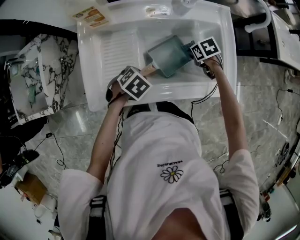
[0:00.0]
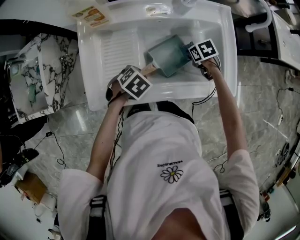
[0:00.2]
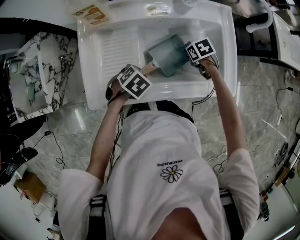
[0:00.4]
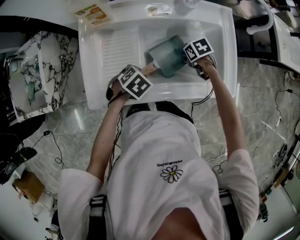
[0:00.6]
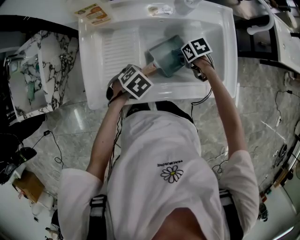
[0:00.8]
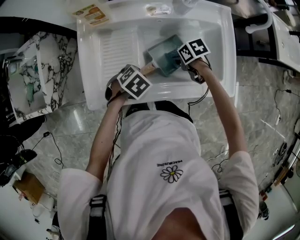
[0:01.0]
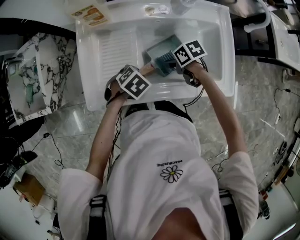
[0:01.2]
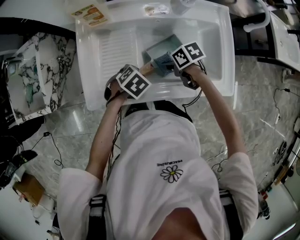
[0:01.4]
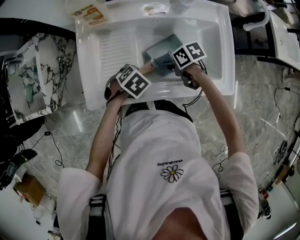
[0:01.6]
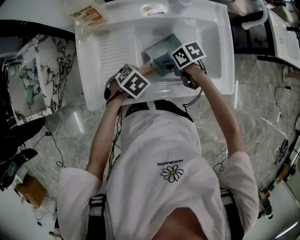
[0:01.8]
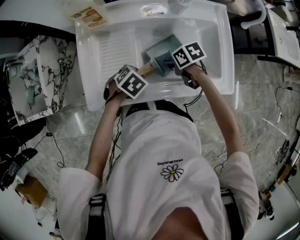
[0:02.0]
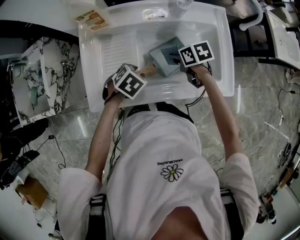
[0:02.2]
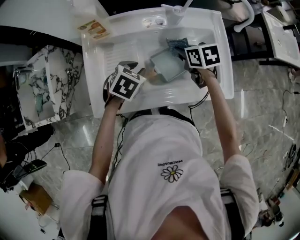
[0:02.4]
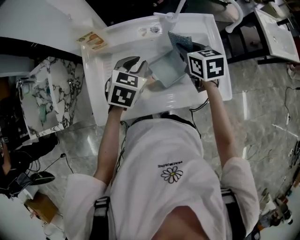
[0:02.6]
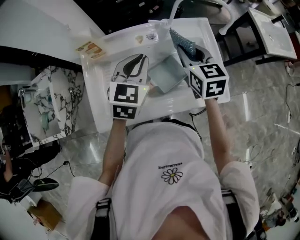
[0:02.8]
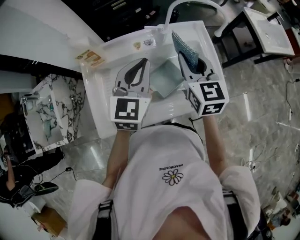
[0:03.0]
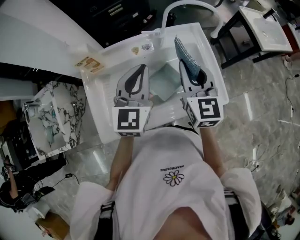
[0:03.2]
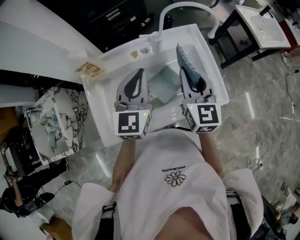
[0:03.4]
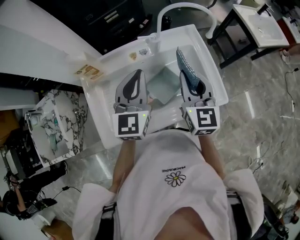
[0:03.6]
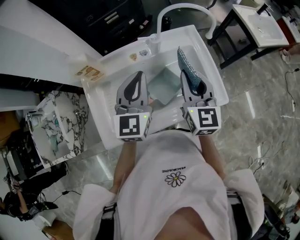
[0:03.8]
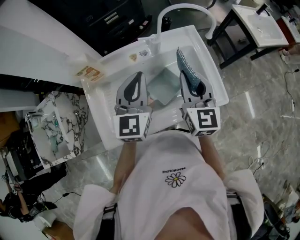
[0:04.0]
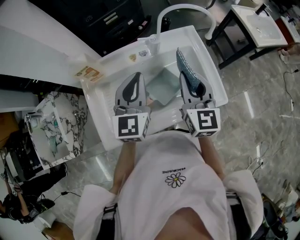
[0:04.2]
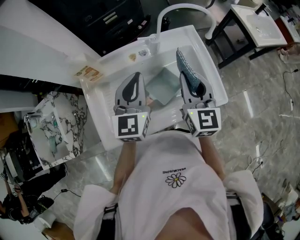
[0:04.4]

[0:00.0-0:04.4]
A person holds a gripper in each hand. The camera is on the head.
0:00.0 to 0:01.4: The right gripper ends up some 15 cm from where it was, and changes its angle by about 30 degrees.
0:01.4 to 0:03.0: The two grippers go some 30 cm upward. The right gripper tilts its fingers about 40 degrees upward, while the left gripper tilts its fingers roughly 60 degrees upward, and closes its fingers.
0:03.0 to 0:04.4: The right gripper changes place by roughly 5 cm.

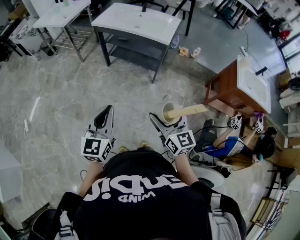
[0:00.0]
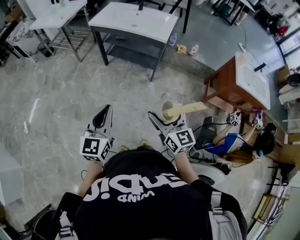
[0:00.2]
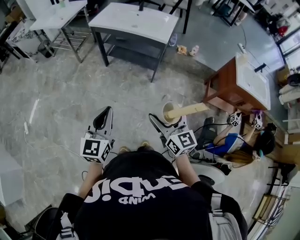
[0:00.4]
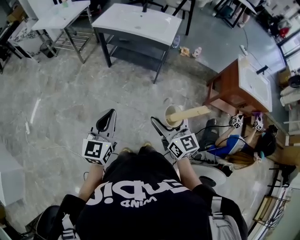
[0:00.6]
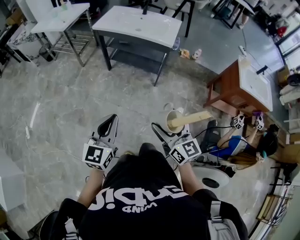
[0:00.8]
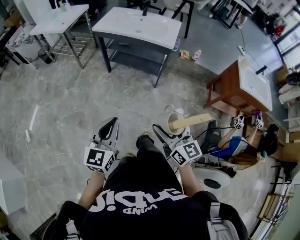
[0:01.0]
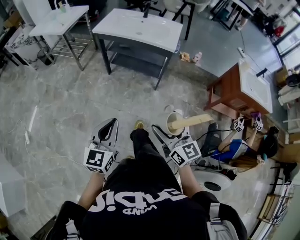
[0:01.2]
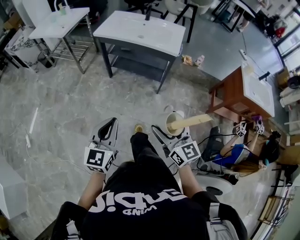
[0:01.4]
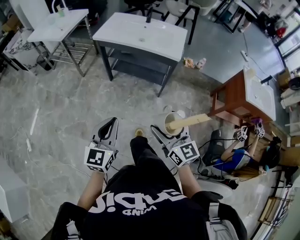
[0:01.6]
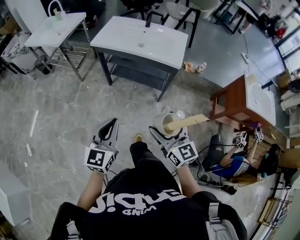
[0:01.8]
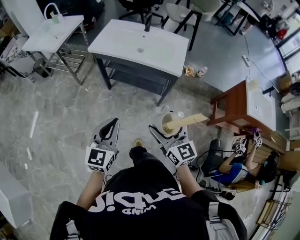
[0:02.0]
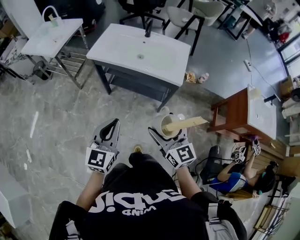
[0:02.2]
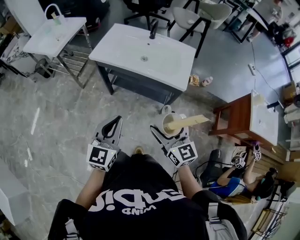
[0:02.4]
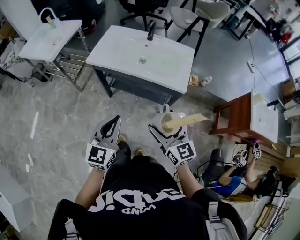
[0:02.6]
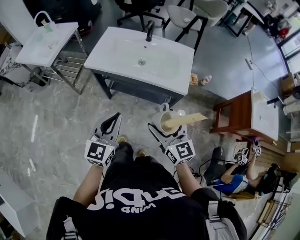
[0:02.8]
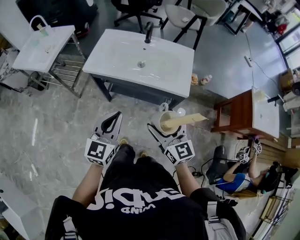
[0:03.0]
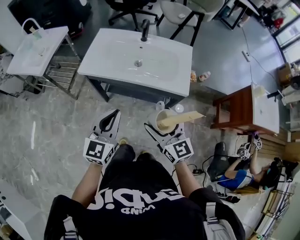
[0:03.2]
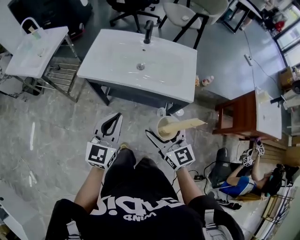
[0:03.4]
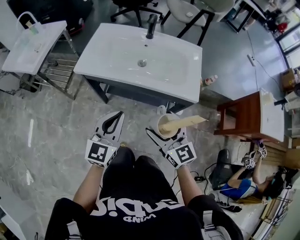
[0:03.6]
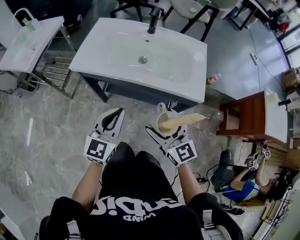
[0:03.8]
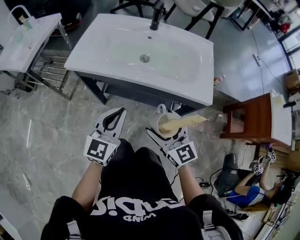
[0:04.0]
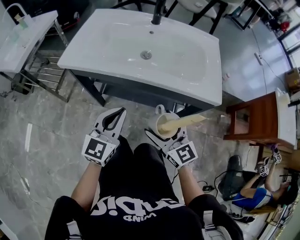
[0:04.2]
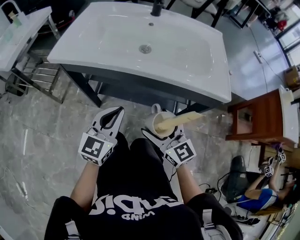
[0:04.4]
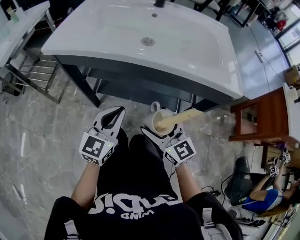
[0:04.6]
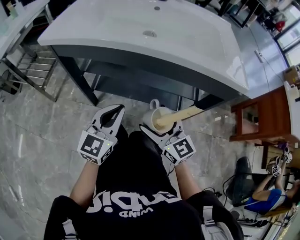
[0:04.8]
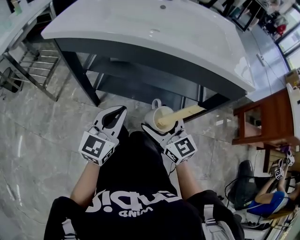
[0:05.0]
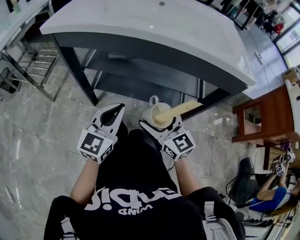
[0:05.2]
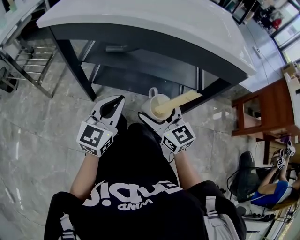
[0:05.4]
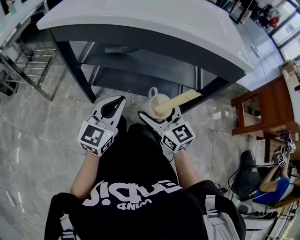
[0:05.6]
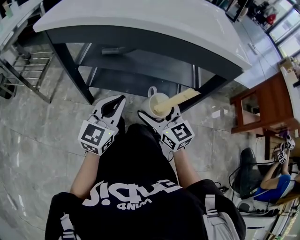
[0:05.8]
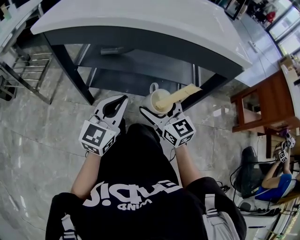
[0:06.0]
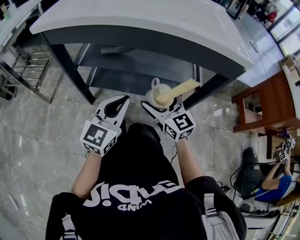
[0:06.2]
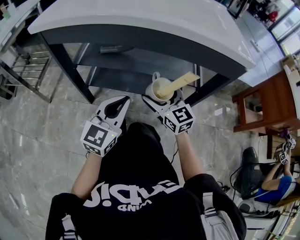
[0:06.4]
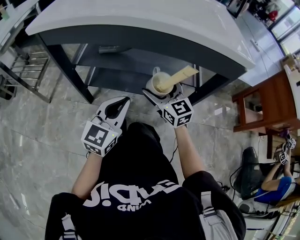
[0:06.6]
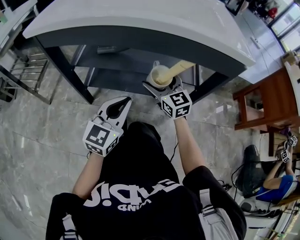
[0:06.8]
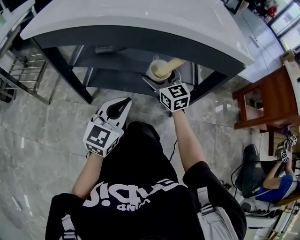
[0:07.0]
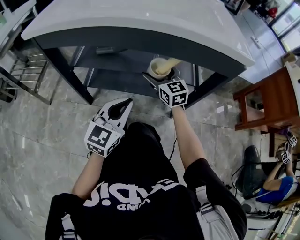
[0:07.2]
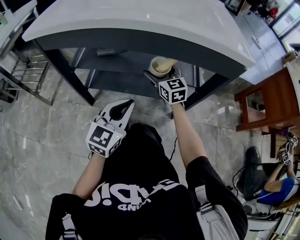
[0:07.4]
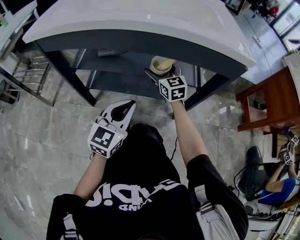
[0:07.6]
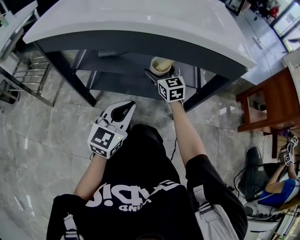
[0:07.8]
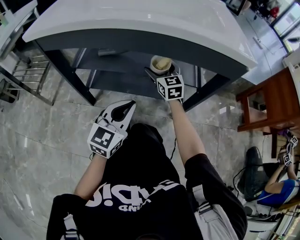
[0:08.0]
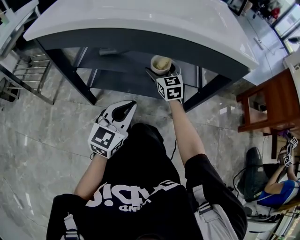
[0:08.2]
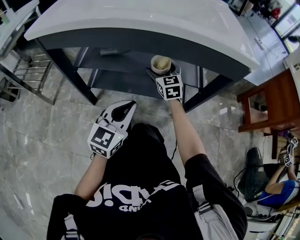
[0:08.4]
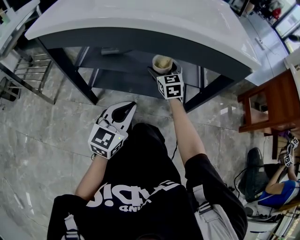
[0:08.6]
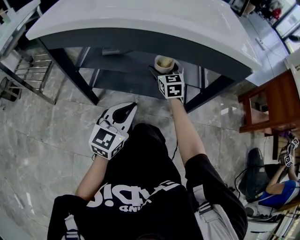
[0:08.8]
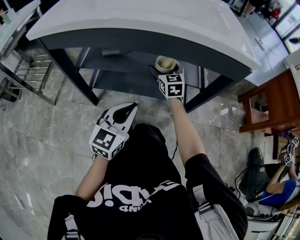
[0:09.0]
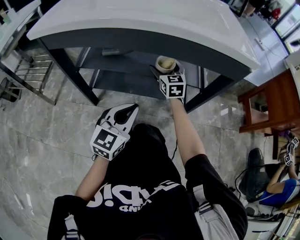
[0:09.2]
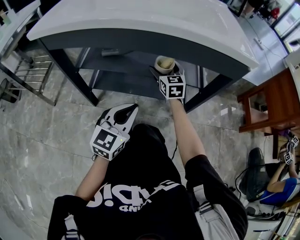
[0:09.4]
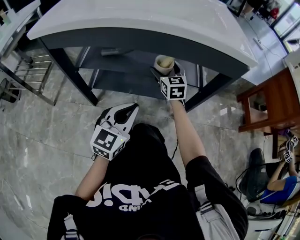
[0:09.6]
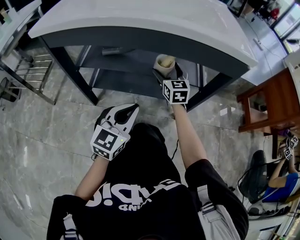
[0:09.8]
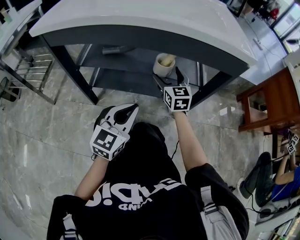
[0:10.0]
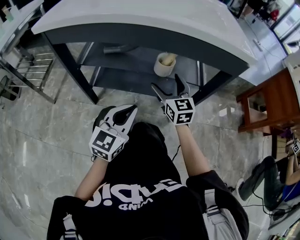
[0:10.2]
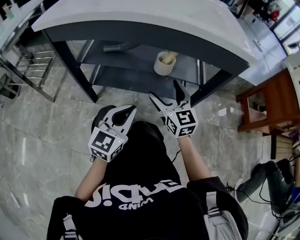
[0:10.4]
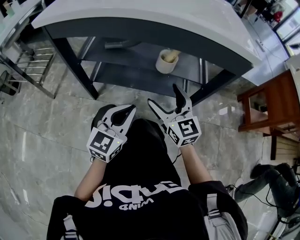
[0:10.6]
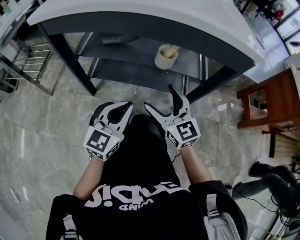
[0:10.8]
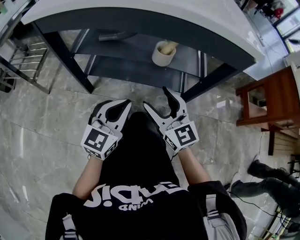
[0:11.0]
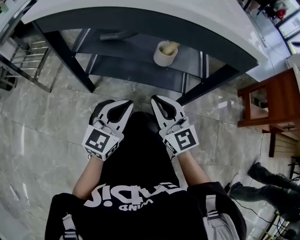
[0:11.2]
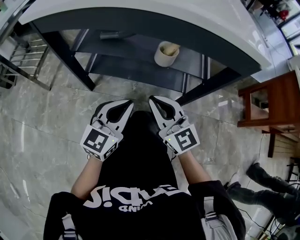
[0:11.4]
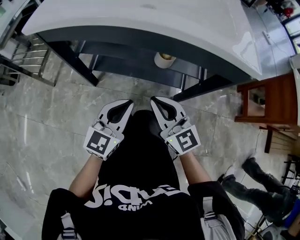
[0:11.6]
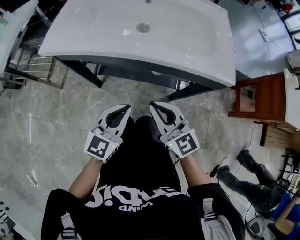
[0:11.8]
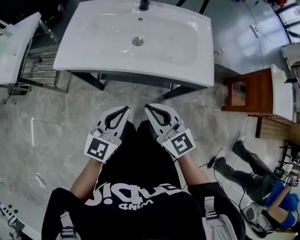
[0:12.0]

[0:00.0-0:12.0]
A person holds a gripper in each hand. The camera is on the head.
0:00.0 to 0:01.6: Both grippers travel together forward and to the left, approximately 15 cm.
0:01.6 to 0:03.0: The grippers both shift forward by some 35 cm.
0:03.0 to 0:04.4: Both grippers travel together downward and forward, about 35 cm.
0:04.4 to 0:06.0: The grippers both shift downward by about 15 cm.
0:06.0 to 0:07.6: The right gripper moves forward, about 20 cm; the left gripper changes place by about 5 cm.
0:07.6 to 0:09.0: The grippers stay close to where they were, moving slightly.
0:09.0 to 0:10.4: The right gripper travels backward by roughly 20 cm.
0:10.4 to 0:12.0: Both grippers travel together upward, some 30 cm. The right gripper closes its fingers.

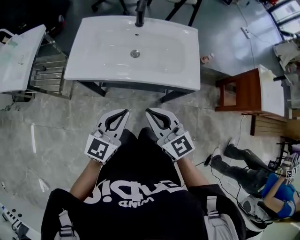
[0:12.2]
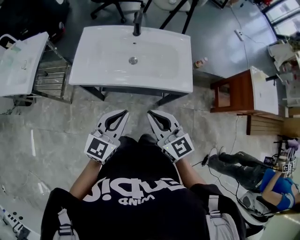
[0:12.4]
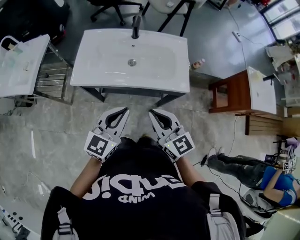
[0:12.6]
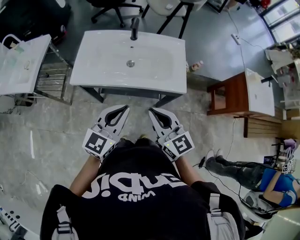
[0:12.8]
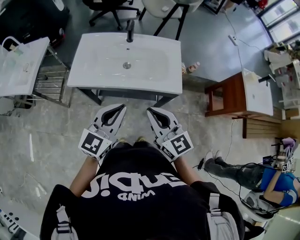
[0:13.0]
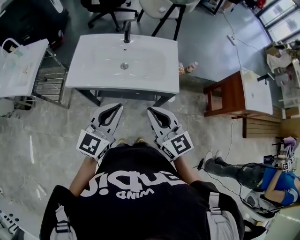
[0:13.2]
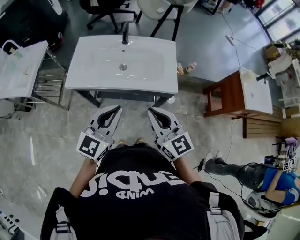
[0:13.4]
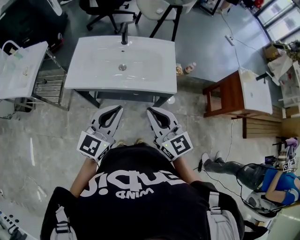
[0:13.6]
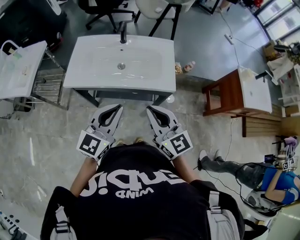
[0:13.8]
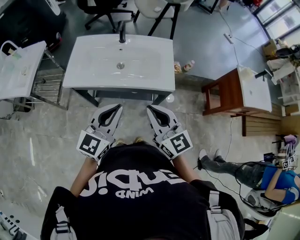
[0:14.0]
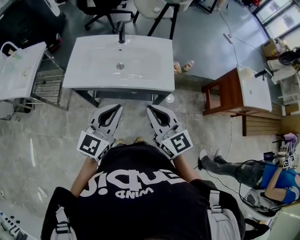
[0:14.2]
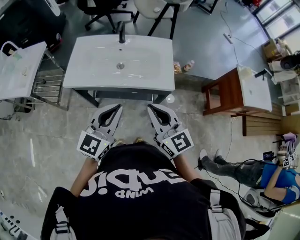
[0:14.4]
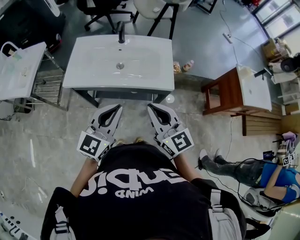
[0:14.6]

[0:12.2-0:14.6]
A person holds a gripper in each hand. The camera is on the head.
0:12.2 to 0:13.4: The right gripper goes some 15 cm upward and to the right, while the left gripper moves upward, approximately 15 cm.
0:13.4 to 0:14.6: There are only small adjustments of the grippers.

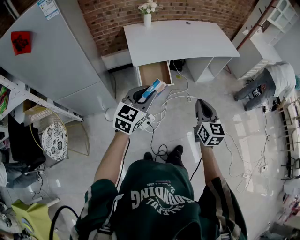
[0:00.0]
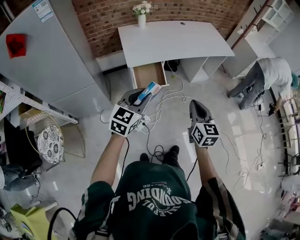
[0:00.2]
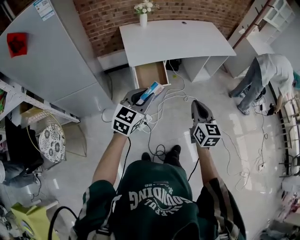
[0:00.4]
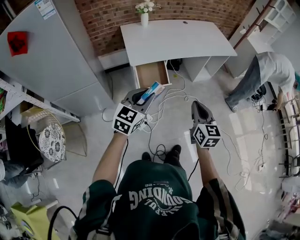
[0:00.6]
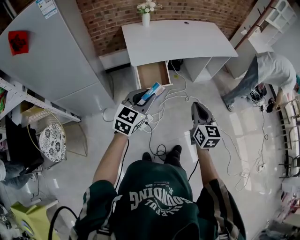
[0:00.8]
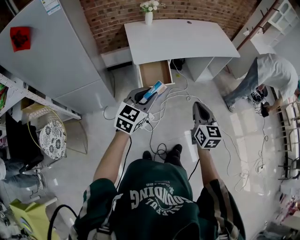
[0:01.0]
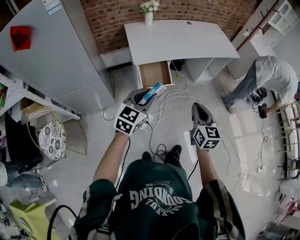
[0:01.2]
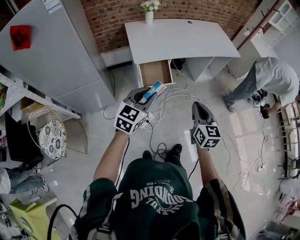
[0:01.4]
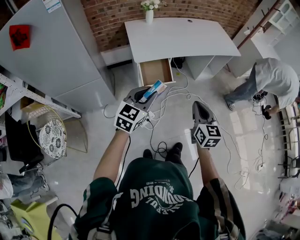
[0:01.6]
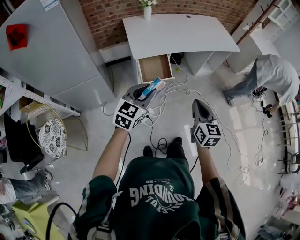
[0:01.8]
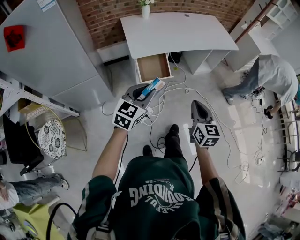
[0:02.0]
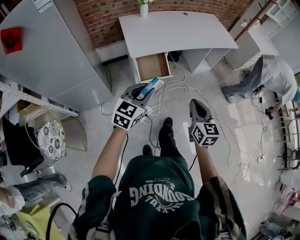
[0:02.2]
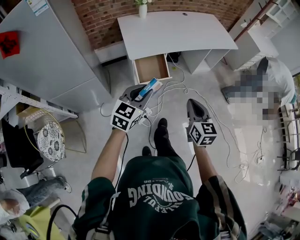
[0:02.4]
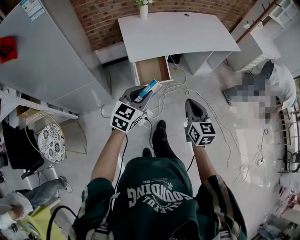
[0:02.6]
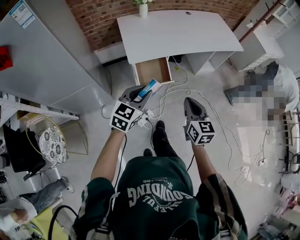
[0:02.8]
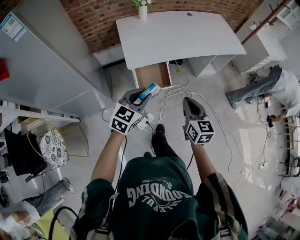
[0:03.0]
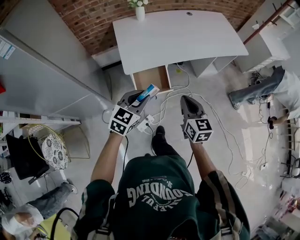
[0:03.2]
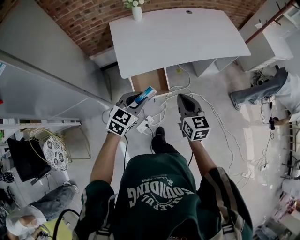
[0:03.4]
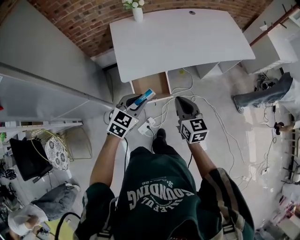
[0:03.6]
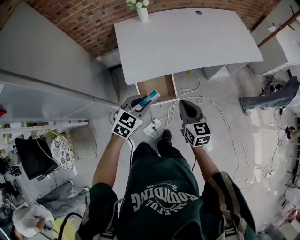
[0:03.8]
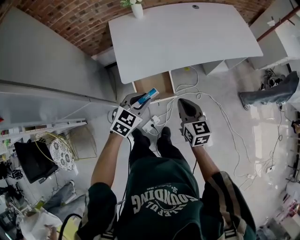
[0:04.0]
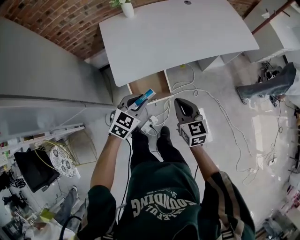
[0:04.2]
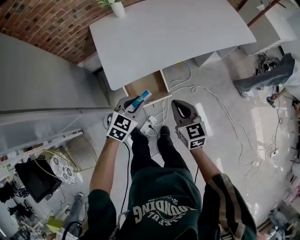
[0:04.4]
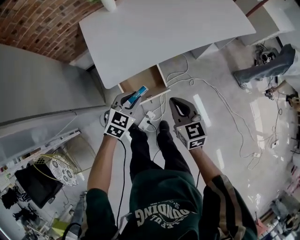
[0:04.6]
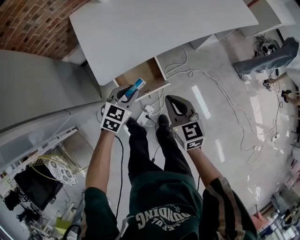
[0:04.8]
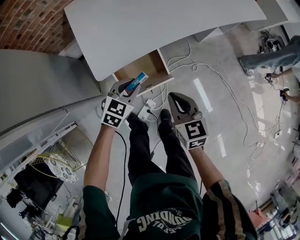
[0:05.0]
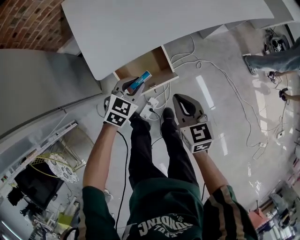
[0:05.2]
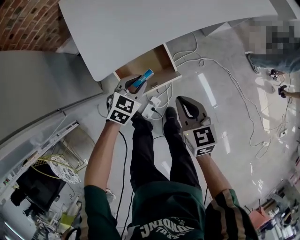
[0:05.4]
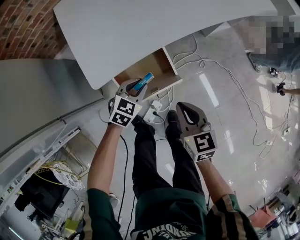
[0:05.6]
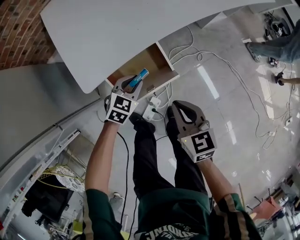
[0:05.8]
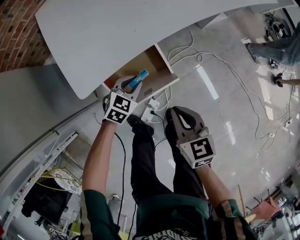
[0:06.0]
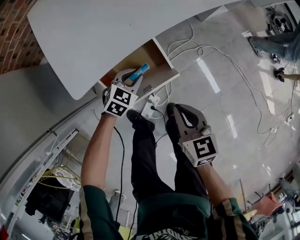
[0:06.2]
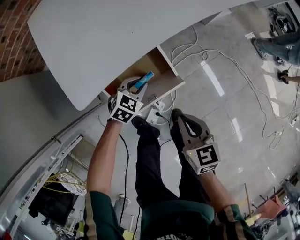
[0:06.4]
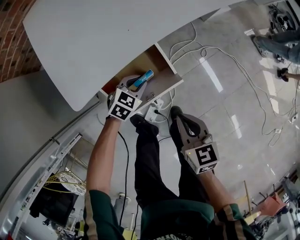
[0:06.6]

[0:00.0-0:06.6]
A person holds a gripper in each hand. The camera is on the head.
0:00.0 to 0:01.6: There are only small adjustments of the grippers.
0:01.6 to 0:03.2: The left gripper moves forward and downward, about 20 cm. The right gripper is displaced forward by some 20 cm.
0:03.2 to 0:05.0: The right gripper shifts roughly 15 cm downward and forward. Meanwhile the left gripper moves downward and forward, about 25 cm.
0:05.0 to 0:06.6: The right gripper heads downward, covering about 15 cm. Meanwhile the left gripper moves downward, approximately 20 cm.
